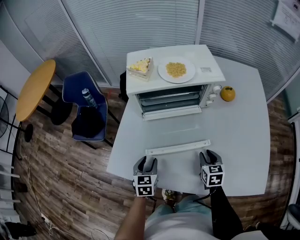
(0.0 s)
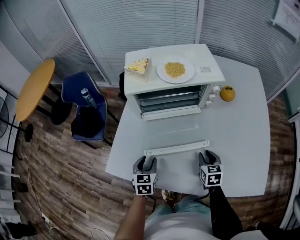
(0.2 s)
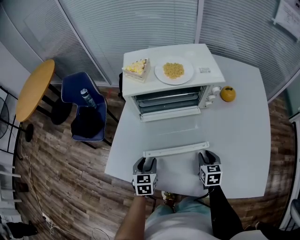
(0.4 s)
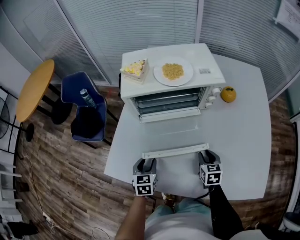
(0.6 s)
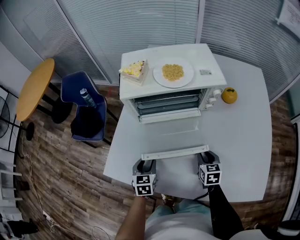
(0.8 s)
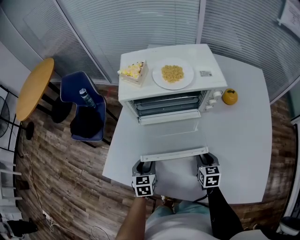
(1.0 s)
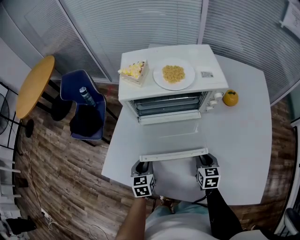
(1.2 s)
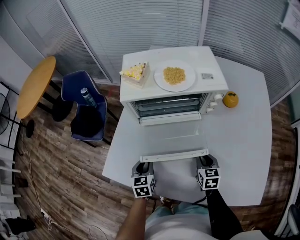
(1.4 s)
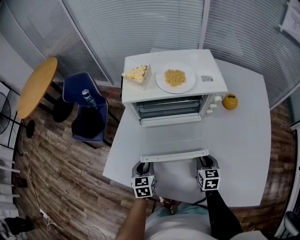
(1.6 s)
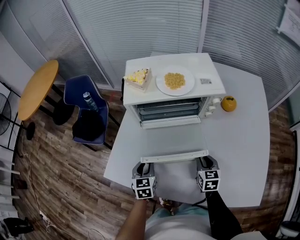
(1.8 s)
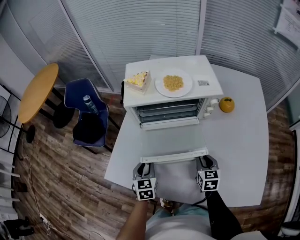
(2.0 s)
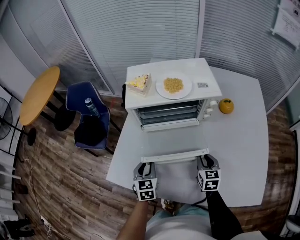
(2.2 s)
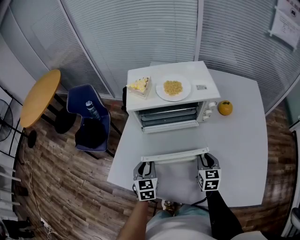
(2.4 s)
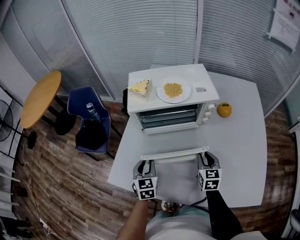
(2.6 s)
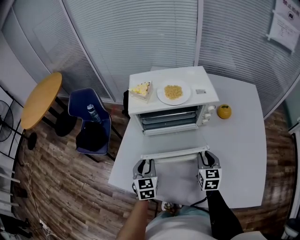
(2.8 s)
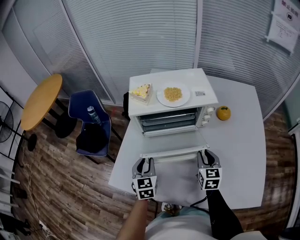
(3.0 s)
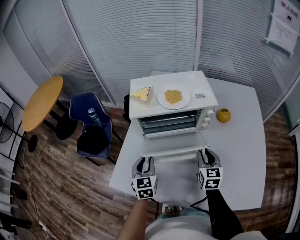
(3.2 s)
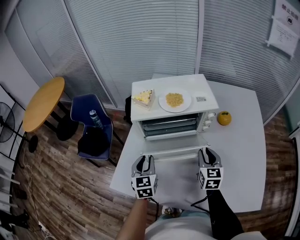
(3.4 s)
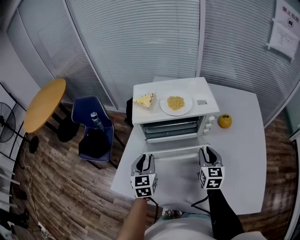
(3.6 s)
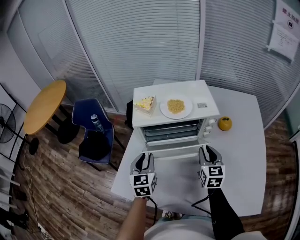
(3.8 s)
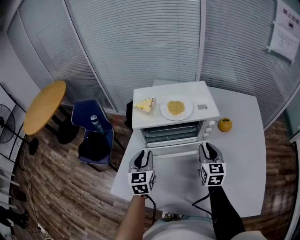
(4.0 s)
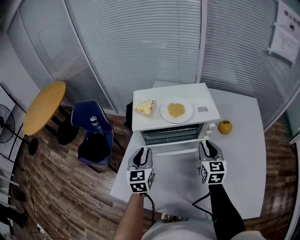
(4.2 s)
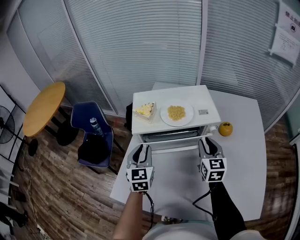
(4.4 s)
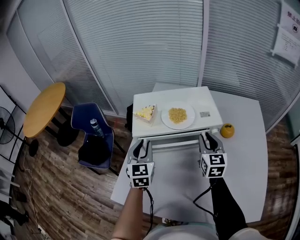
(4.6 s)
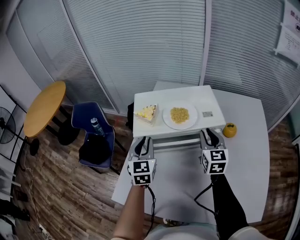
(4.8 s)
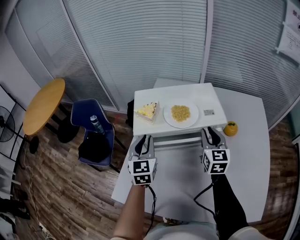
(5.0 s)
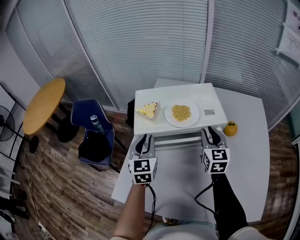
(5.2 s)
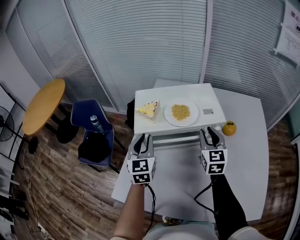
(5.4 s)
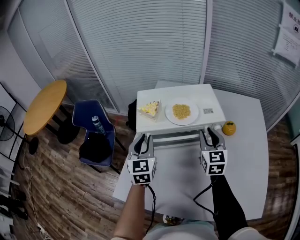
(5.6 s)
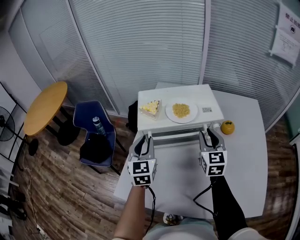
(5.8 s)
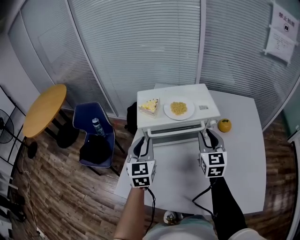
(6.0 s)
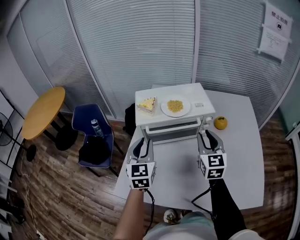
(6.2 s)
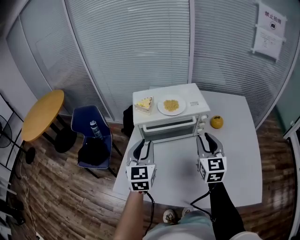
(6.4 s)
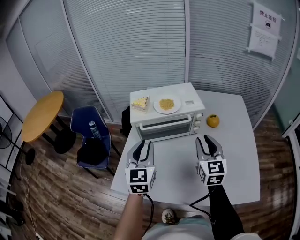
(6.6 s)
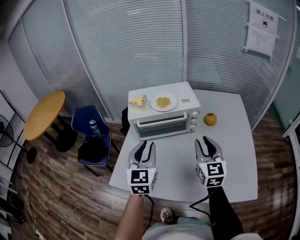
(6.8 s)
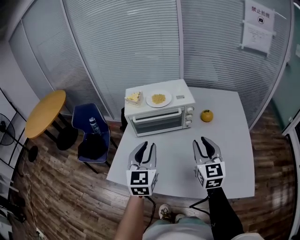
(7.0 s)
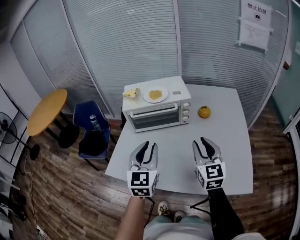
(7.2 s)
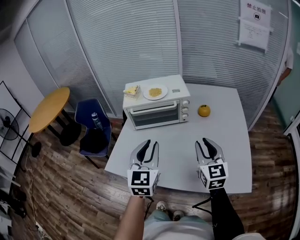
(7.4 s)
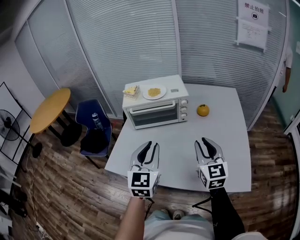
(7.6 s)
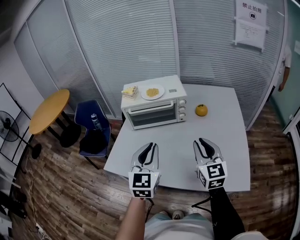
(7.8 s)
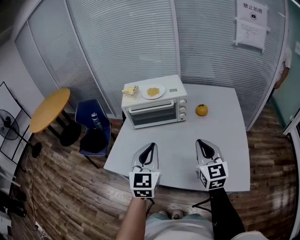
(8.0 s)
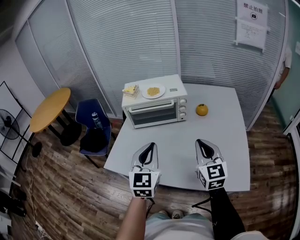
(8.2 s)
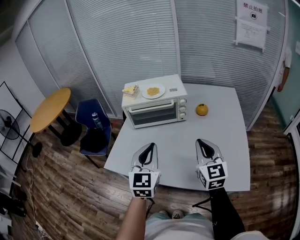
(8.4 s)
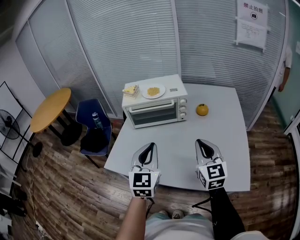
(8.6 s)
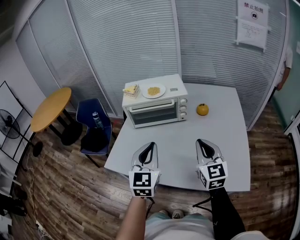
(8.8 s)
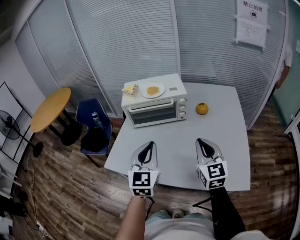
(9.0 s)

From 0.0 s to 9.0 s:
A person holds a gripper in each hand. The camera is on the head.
From 0.0 s to 1.6 s: There are only small adjustments of the grippers.
From 1.6 s to 3.0 s: Both grippers move upward, roughly 10 cm.
From 3.0 s to 4.4 s: Both grippers travel together forward and upward, about 15 cm.
From 4.4 s to 6.0 s: Both grippers move upward, about 5 cm. The right gripper goes forward and returns, roughly 5 cm each way.
From 6.0 s to 7.6 s: Both grippers travel together backward and to the right, approximately 30 cm.
From 7.6 s to 9.0 s: The right gripper closes its fingers.

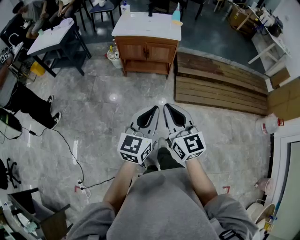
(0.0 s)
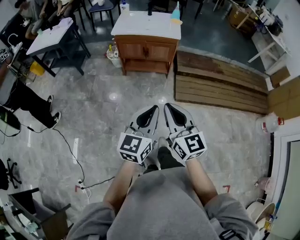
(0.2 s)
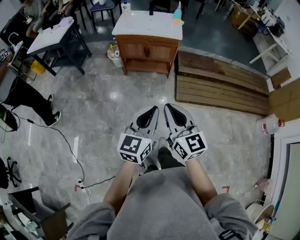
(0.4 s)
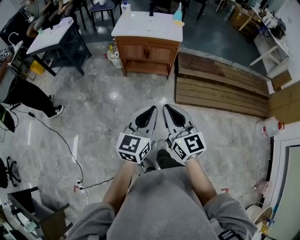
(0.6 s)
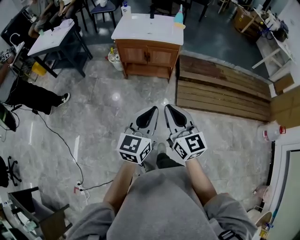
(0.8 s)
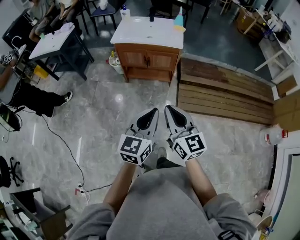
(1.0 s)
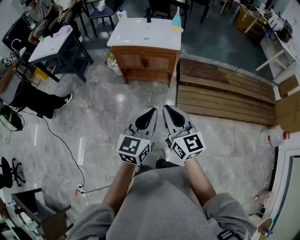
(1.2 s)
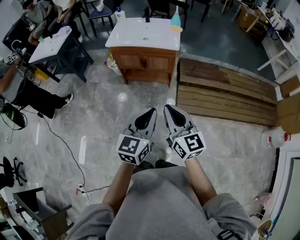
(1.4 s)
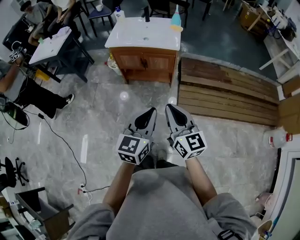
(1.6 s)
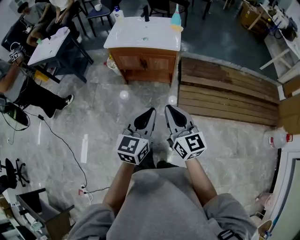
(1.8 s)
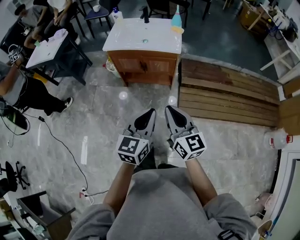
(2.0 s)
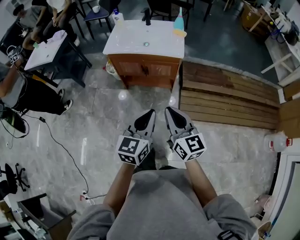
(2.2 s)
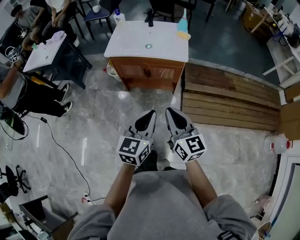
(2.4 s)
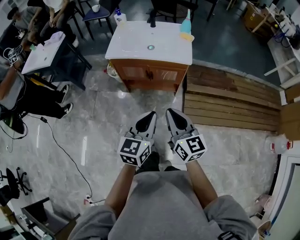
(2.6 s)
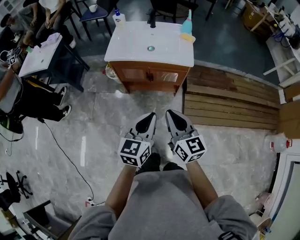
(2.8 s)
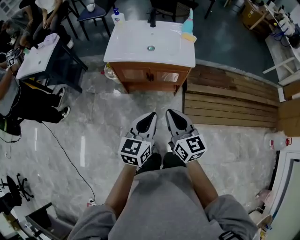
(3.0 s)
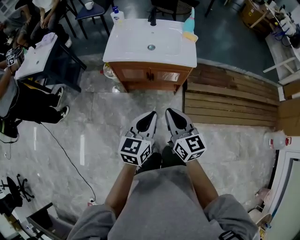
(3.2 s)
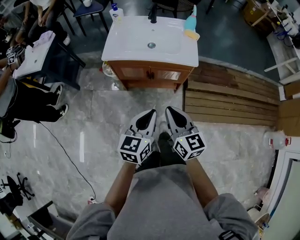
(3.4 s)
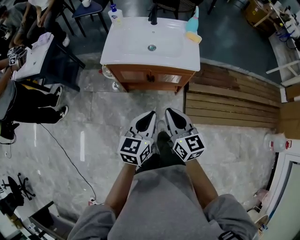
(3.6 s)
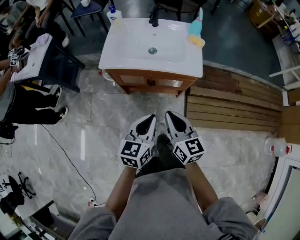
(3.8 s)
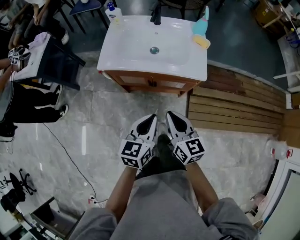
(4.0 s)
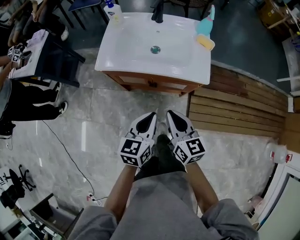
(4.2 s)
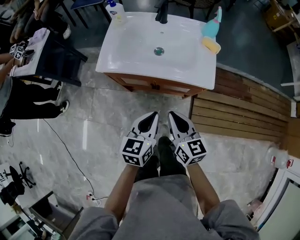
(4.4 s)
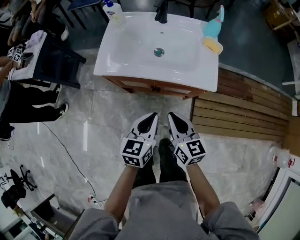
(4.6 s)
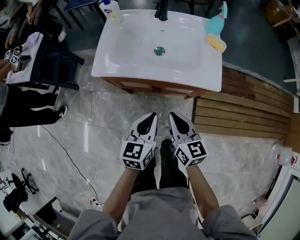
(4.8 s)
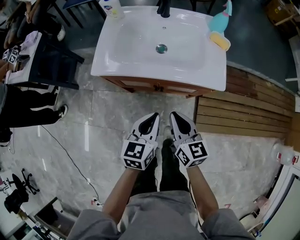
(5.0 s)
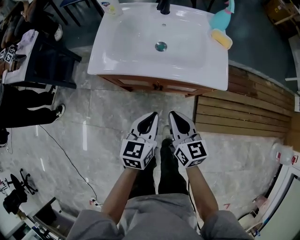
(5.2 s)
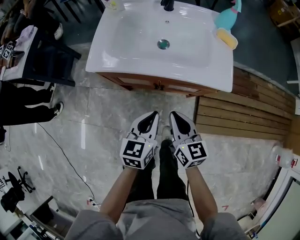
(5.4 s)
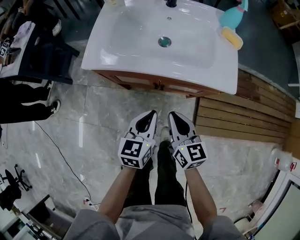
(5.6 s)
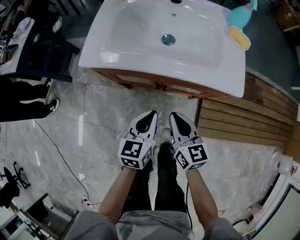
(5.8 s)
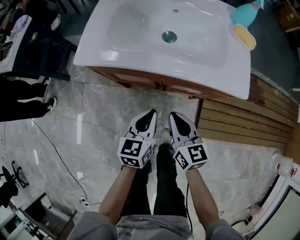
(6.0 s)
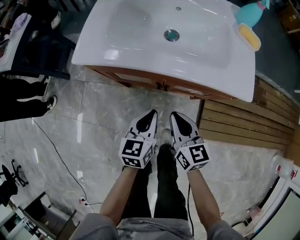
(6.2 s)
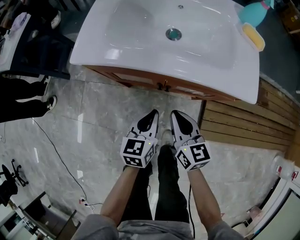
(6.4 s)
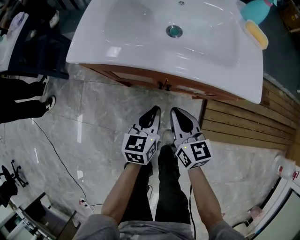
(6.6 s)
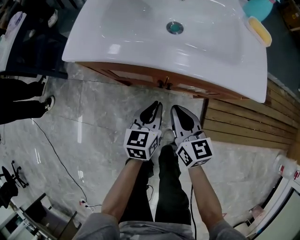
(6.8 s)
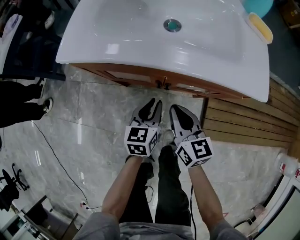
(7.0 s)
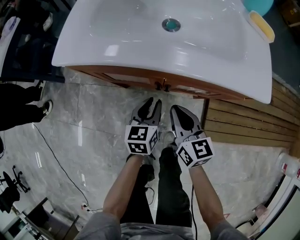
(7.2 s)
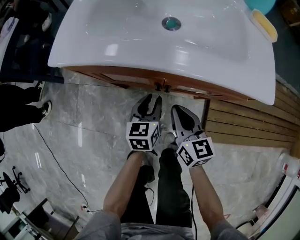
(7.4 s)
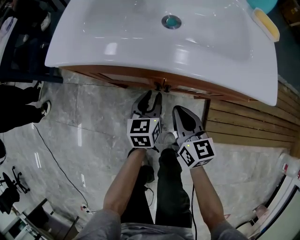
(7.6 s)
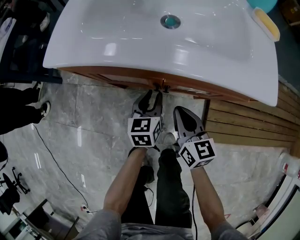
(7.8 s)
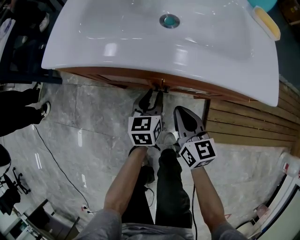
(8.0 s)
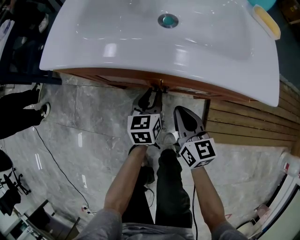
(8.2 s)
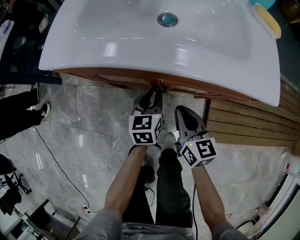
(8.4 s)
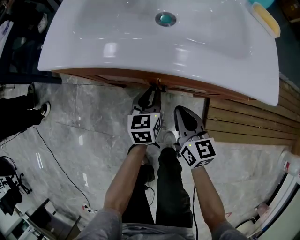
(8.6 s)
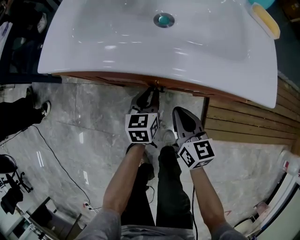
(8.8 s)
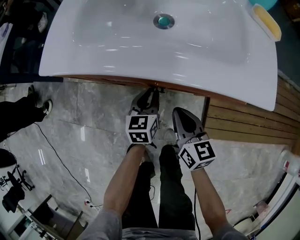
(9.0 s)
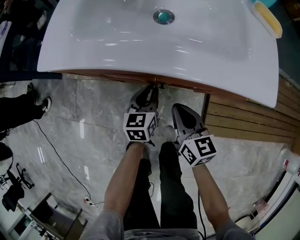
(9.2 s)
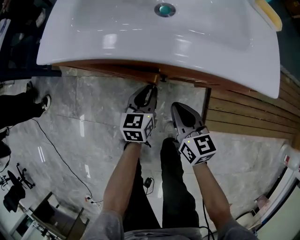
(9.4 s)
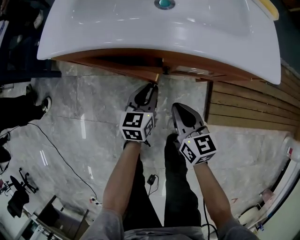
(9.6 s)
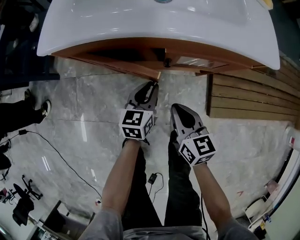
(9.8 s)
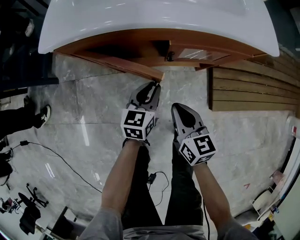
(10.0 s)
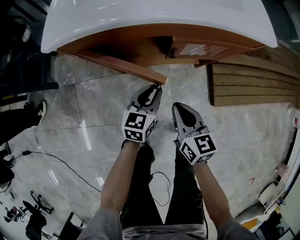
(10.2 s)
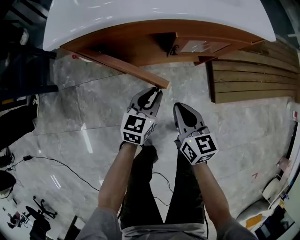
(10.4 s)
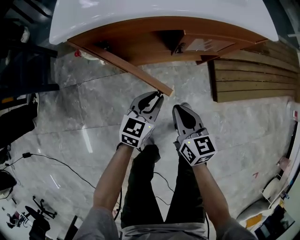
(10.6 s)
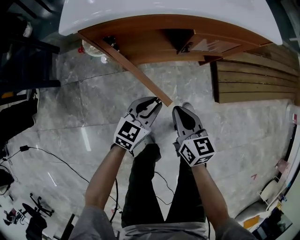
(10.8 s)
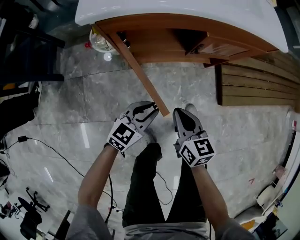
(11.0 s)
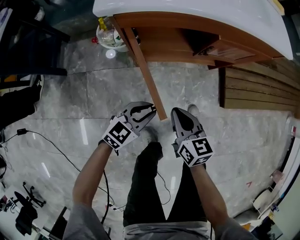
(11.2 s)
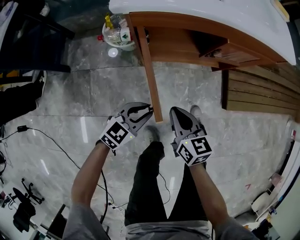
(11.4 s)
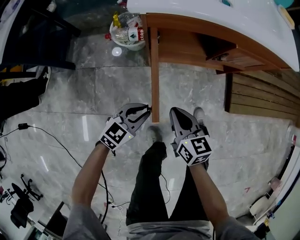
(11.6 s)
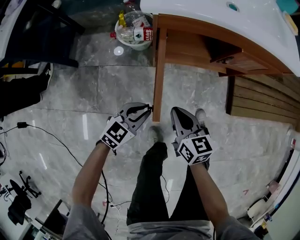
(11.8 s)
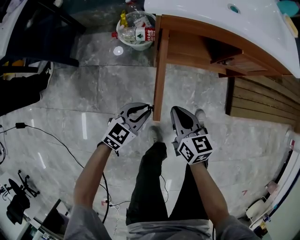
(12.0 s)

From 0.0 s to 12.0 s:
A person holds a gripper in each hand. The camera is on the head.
From 0.0 s to 1.6 s: The grippers both shift forward and to the right by about 20 cm.
From 1.6 s to 3.0 s: The two grippers go approximately 25 cm forward and to the left.
From 3.0 s to 4.4 s: The two grippers go some 25 cm forward and downward.
From 4.4 s to 6.0 s: The two grippers go some 20 cm downward.
From 6.0 s to 7.6 s: The right gripper is displaced downward by about 10 cm; the left gripper moves downward and forward, about 20 cm, and opens up.
From 7.6 s to 9.0 s: The grippers stay close to where they were, moving slightly.
From 9.0 s to 10.4 s: The grippers both shift backward and to the left by about 15 cm. The left gripper changes its angle by about 30 degrees.
From 10.4 s to 12.0 s: The two grippers go some 20 cm to the left and backward.

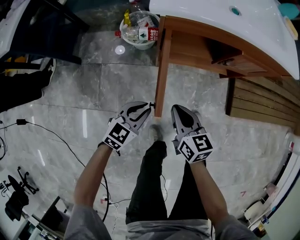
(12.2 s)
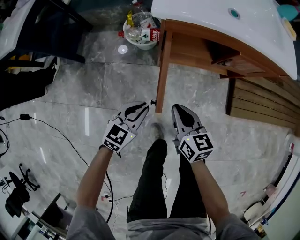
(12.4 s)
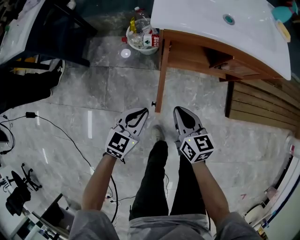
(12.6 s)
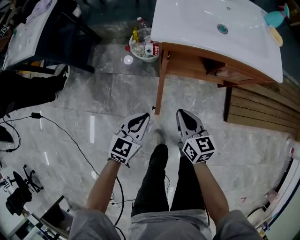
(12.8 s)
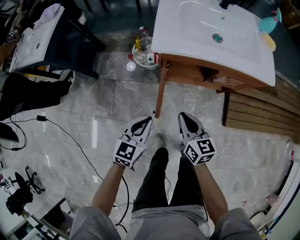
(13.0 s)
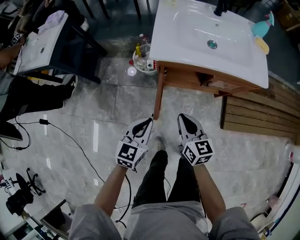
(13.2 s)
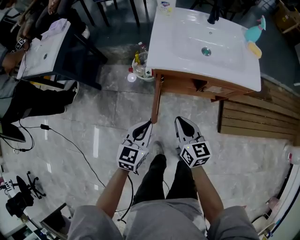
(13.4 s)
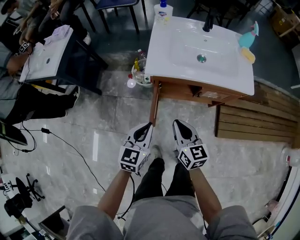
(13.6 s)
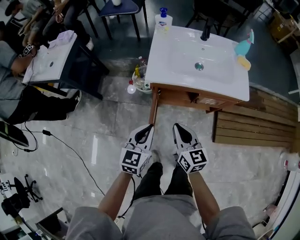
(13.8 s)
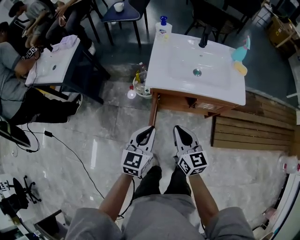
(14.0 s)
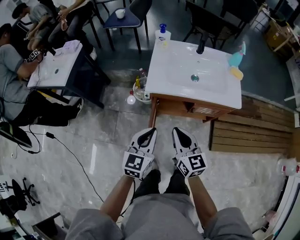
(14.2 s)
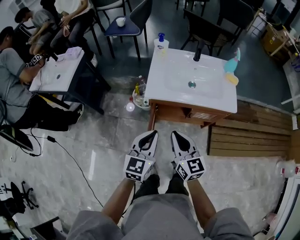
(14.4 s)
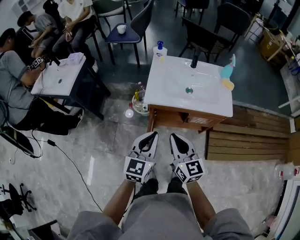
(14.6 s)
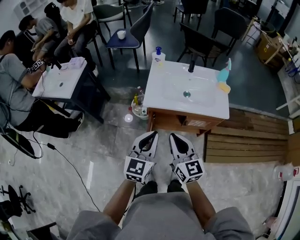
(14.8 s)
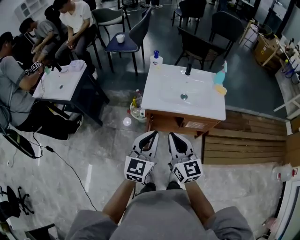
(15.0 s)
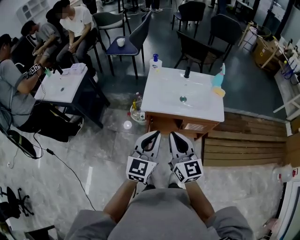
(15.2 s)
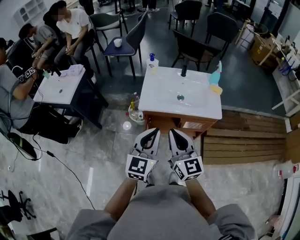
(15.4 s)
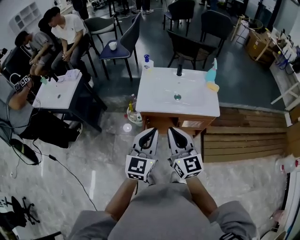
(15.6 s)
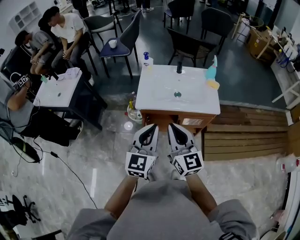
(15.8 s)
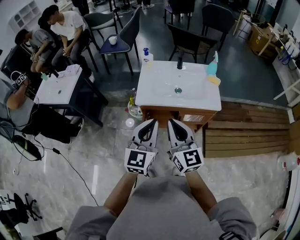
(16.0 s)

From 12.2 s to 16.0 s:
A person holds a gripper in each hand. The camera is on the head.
From 12.2 s to 13.4 s: Both grippers travel together upward, about 25 cm. The left gripper turns by roughly 20 degrees.
From 13.4 s to 14.8 s: Both grippers move upward, roughly 25 cm.
From 14.8 s to 16.0 s: The left gripper heads upward and to the right, covering about 10 cm. Meanwhile the right gripper goes roughly 5 cm upward.
